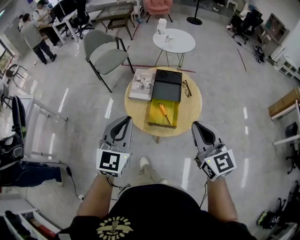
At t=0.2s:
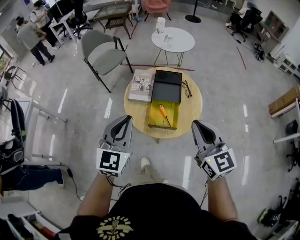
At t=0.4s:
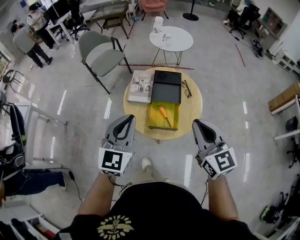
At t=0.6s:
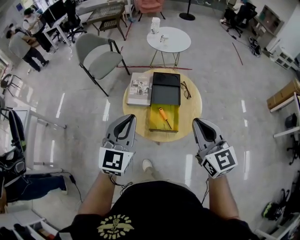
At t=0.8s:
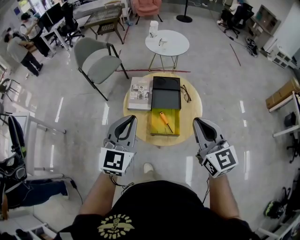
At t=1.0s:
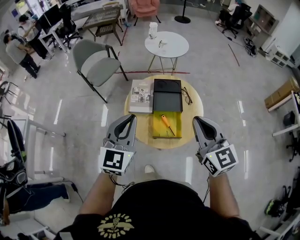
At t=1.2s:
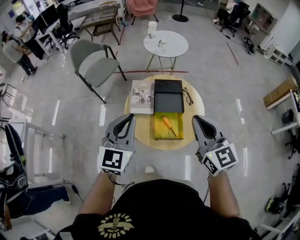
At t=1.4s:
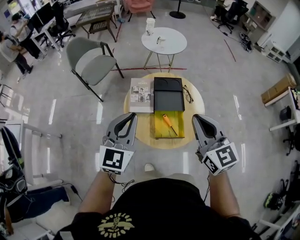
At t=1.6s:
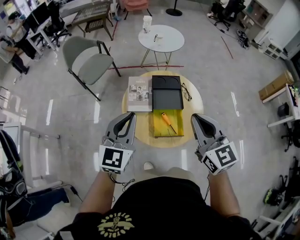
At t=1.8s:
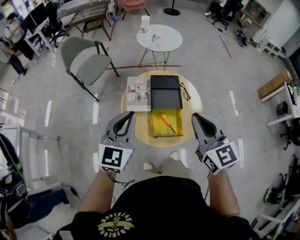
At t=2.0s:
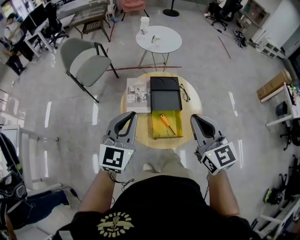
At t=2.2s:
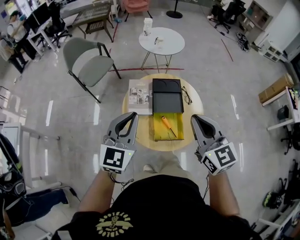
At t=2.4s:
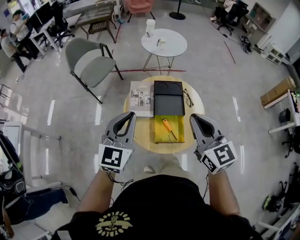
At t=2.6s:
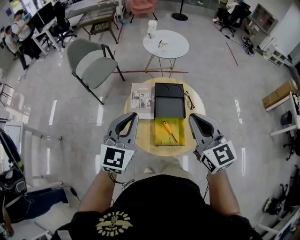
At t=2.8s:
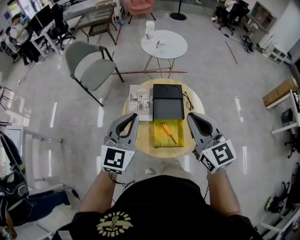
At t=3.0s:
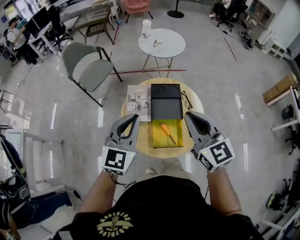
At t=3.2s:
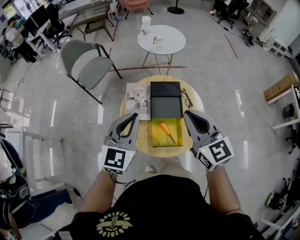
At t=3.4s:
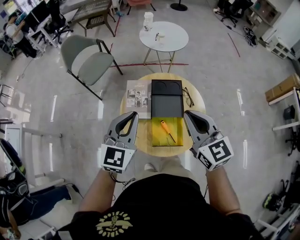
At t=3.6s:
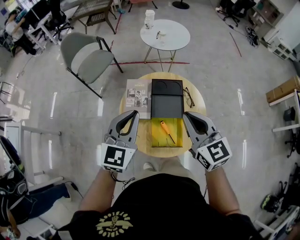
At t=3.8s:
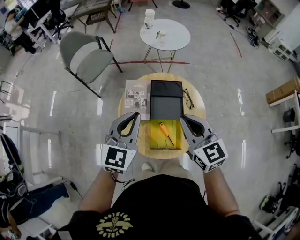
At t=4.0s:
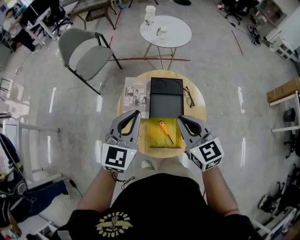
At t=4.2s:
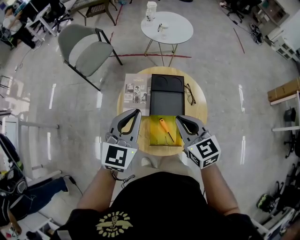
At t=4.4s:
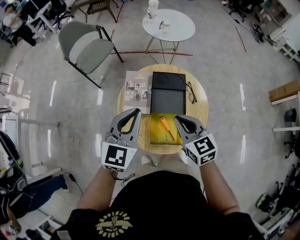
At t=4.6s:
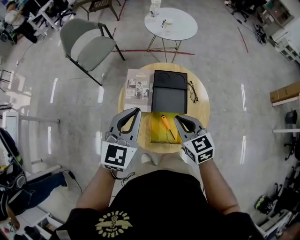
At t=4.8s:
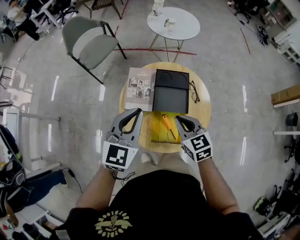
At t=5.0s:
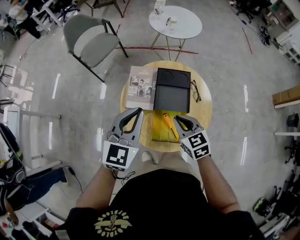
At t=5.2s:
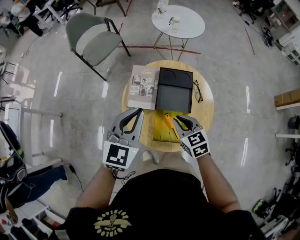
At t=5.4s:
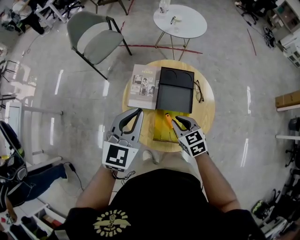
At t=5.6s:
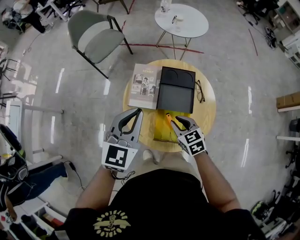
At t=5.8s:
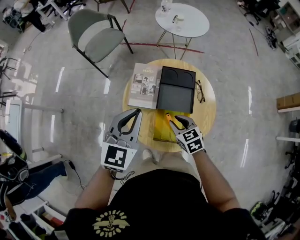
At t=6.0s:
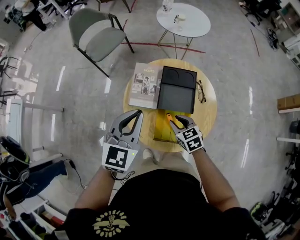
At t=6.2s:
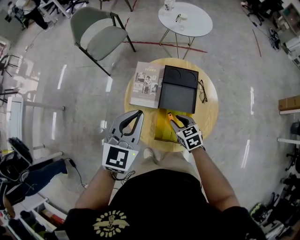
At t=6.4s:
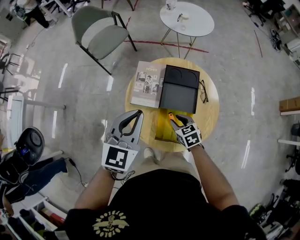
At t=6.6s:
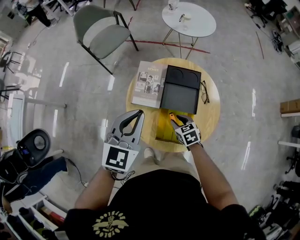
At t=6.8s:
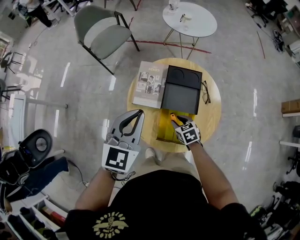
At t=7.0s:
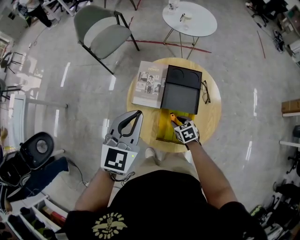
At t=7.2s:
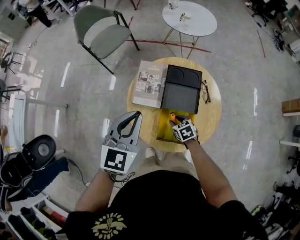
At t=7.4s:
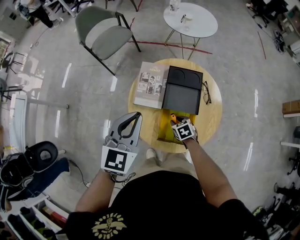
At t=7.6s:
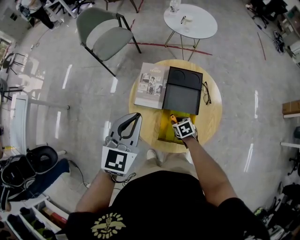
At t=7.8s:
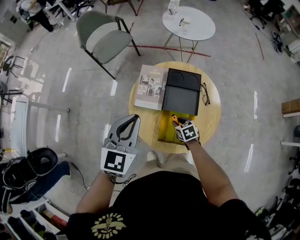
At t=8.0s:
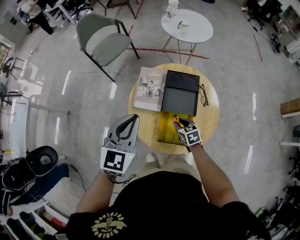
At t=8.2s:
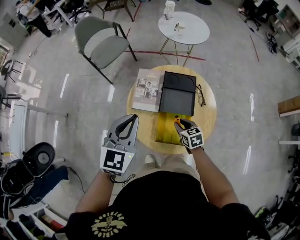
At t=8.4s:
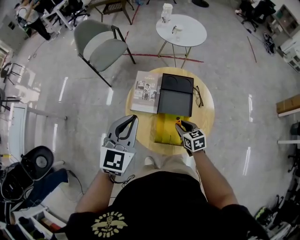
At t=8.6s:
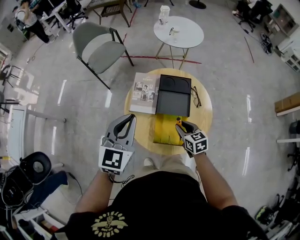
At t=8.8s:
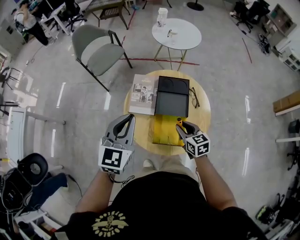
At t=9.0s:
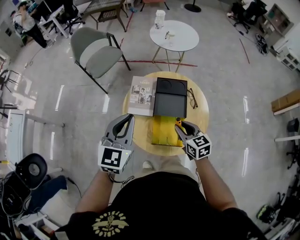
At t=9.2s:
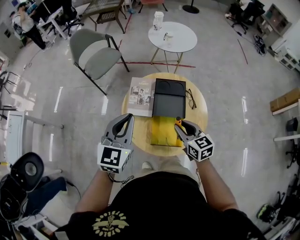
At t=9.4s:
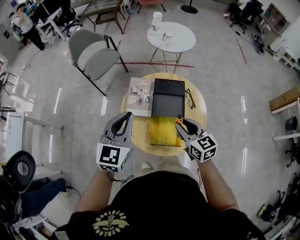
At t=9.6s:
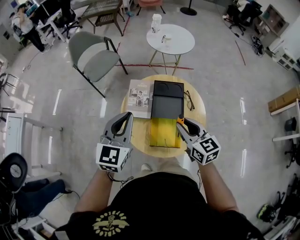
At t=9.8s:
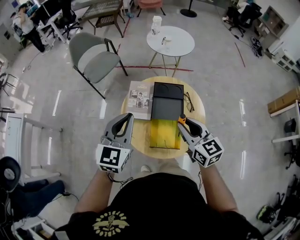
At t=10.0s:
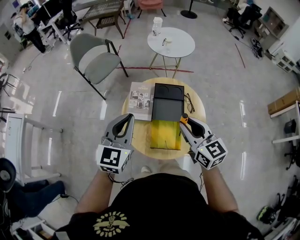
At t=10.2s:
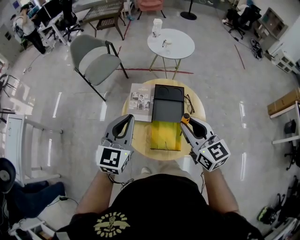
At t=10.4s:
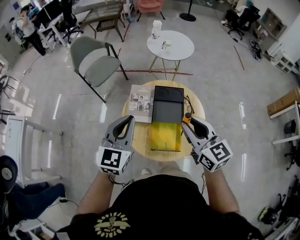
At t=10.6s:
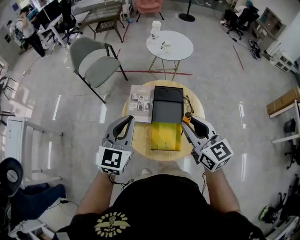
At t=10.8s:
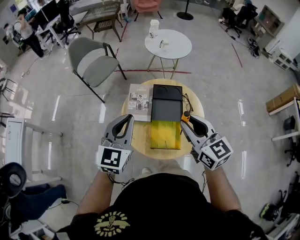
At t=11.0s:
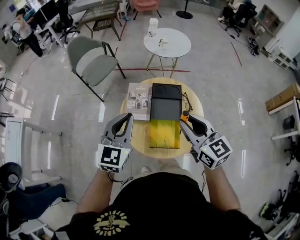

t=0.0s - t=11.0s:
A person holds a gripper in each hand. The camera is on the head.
t=0.0s - t=1.6s: The left gripper travels forward by some 15 cm, while the right gripper heads forward and to the left, covering about 15 cm.
t=1.6s - t=3.2s: Both grippers travel together forward, some 10 cm.
t=3.2s - t=4.8s: The right gripper is displaced downward by approximately 20 cm, and swivels approximately 20 degrees. Meanwhile the left gripper heads downward, covering roughly 5 cm.
t=4.8s - t=6.2s: The right gripper travels downward by about 15 cm, and opens.
t=6.2s - t=7.8s: The right gripper shifts roughly 10 cm downward.
t=7.8s - t=9.4s: The right gripper moves upward, some 25 cm, and tips its fingers upward by about 30 degrees.
t=9.4s - t=11.0s: The right gripper is displaced upward by some 10 cm.

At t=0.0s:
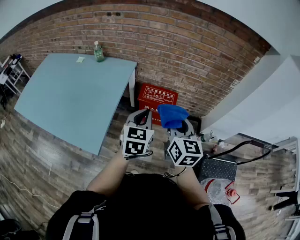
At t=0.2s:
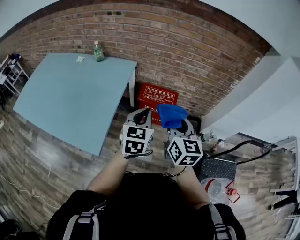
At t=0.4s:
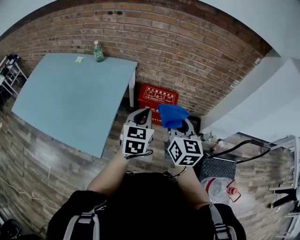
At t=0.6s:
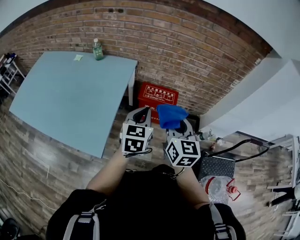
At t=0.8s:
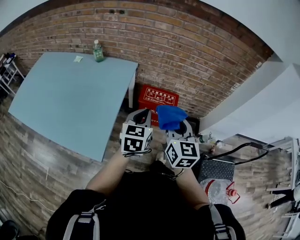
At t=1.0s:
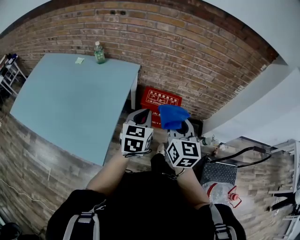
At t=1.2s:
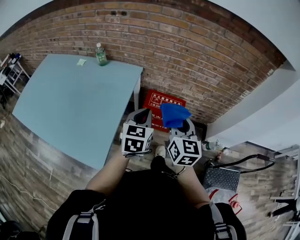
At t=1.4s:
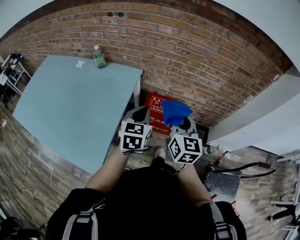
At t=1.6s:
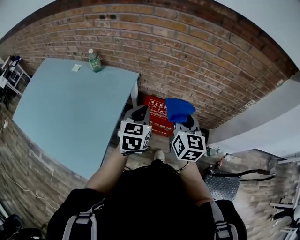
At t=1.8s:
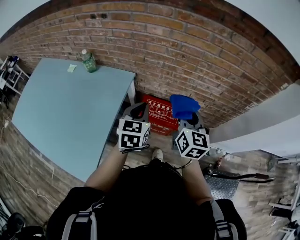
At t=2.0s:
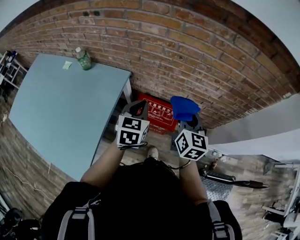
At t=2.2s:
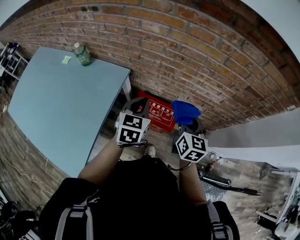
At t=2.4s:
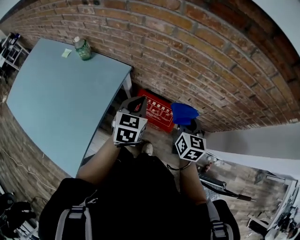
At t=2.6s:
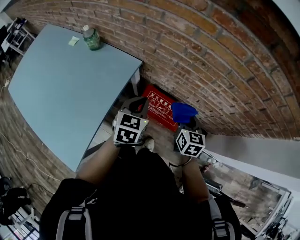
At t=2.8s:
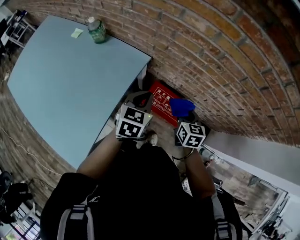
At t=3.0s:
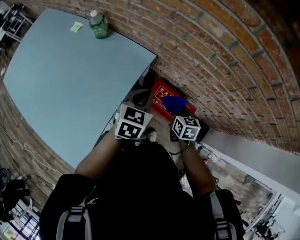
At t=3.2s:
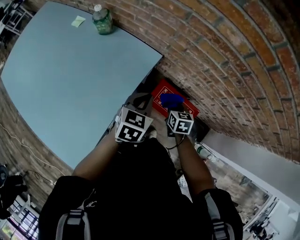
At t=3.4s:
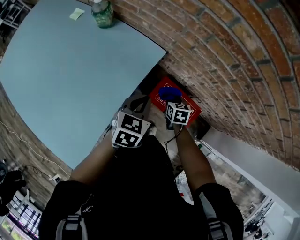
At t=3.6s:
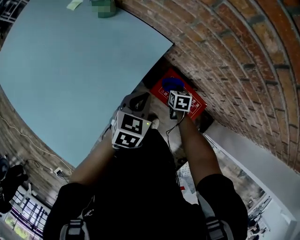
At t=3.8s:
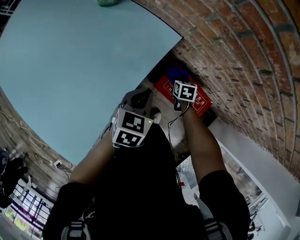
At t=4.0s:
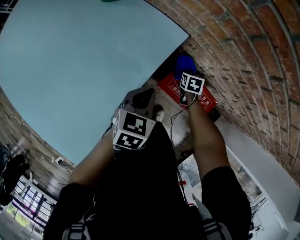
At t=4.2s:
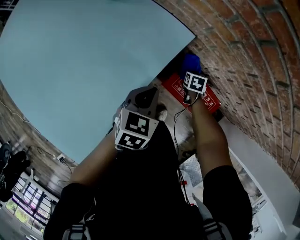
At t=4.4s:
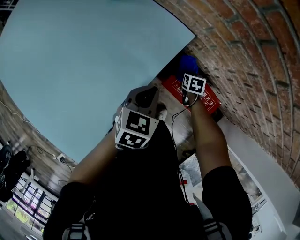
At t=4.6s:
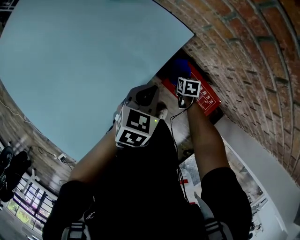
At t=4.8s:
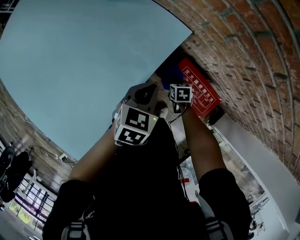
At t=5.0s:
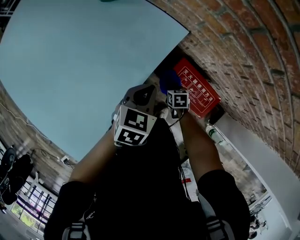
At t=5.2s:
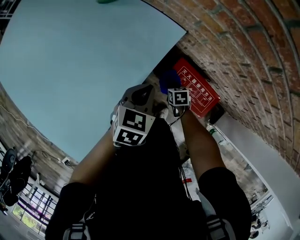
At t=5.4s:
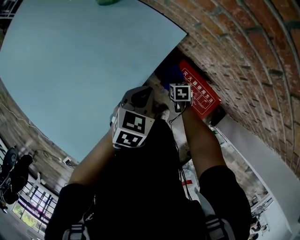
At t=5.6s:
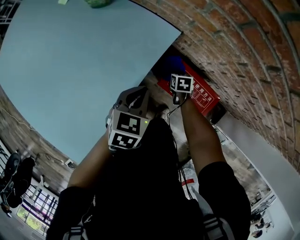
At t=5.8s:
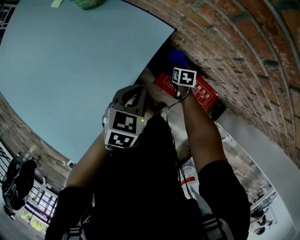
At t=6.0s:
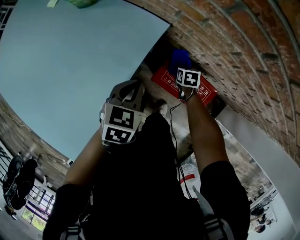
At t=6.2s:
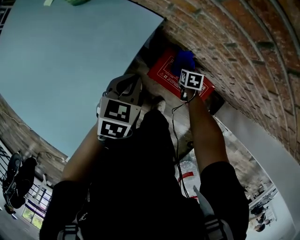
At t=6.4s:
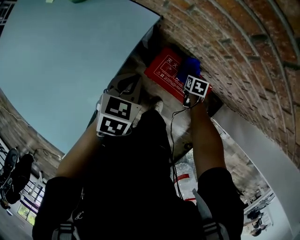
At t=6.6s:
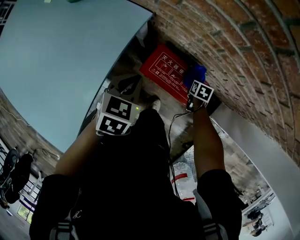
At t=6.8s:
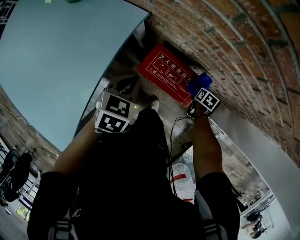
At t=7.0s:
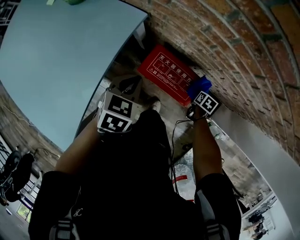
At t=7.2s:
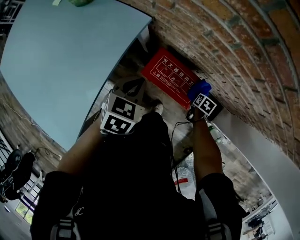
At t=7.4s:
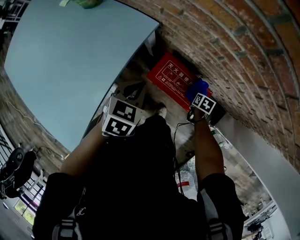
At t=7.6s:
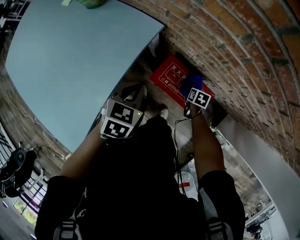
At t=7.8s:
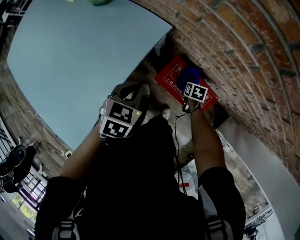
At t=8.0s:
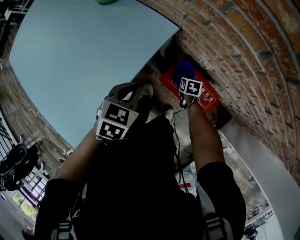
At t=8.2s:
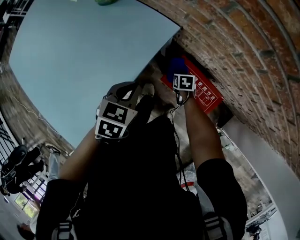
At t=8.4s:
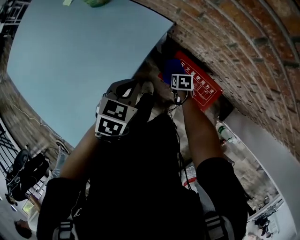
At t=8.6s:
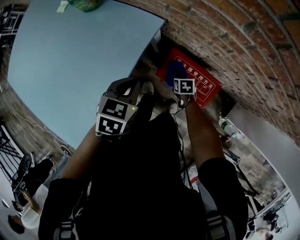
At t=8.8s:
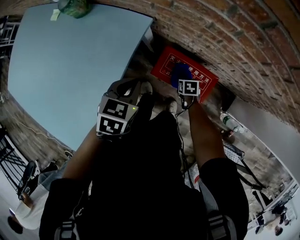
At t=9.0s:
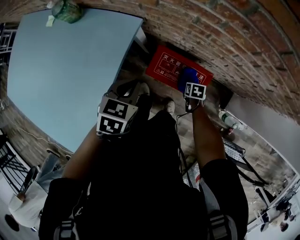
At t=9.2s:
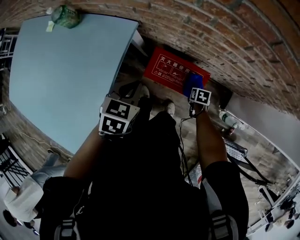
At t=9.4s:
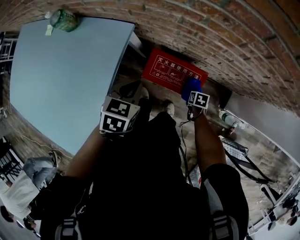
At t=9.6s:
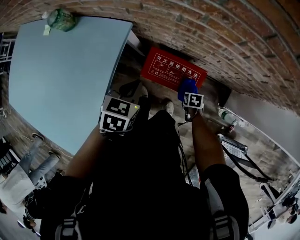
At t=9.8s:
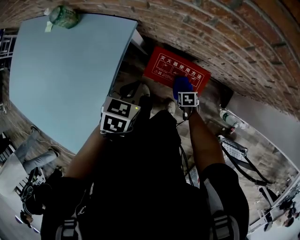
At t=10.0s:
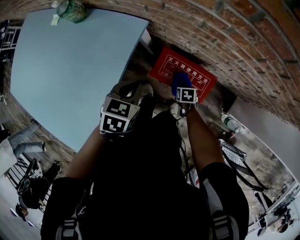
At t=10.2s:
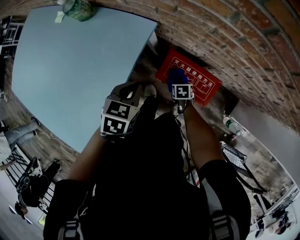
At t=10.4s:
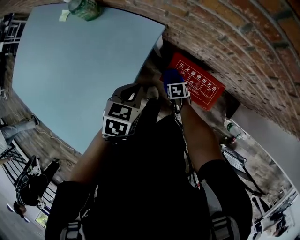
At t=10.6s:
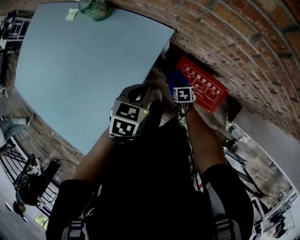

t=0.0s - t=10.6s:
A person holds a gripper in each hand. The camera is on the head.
t=0.0s - t=1.6s: Both grippers travel together forward, some 25 cm.
t=1.6s - t=3.0s: The left gripper goes some 20 cm forward and downward. The right gripper shifts about 35 cm downward and forward, and points its fingers roughly 30 degrees further downward.
t=3.0s - t=4.6s: The left gripper is displaced downward and to the left by some 15 cm; the right gripper shifts some 25 cm downward, and turns by about 30 degrees.
t=4.6s - t=6.0s: The right gripper moves to the right, some 5 cm, and travels backward and back again, about 10 cm each way.
t=6.0s - t=7.6s: The right gripper is displaced to the right and backward by roughly 15 cm. The left gripper moves to the right, approximately 5 cm.
t=7.6s - t=9.0s: The left gripper reaches some 5 cm to the left, then returns, while the right gripper goes some 5 cm backward, and travels to the left and back again, about 15 cm each way.
t=9.0s - t=10.6s: The right gripper moves approximately 20 cm, while the left gripper shifts by about 10 cm.

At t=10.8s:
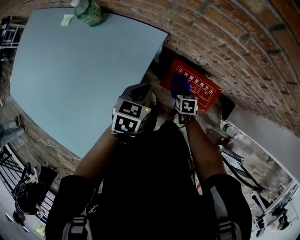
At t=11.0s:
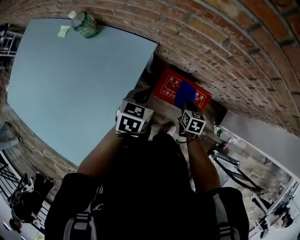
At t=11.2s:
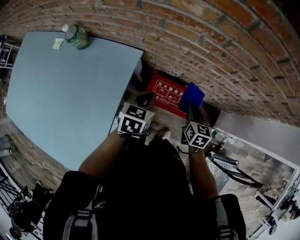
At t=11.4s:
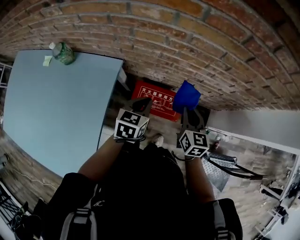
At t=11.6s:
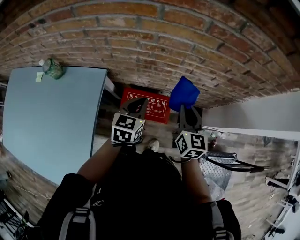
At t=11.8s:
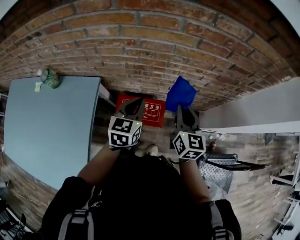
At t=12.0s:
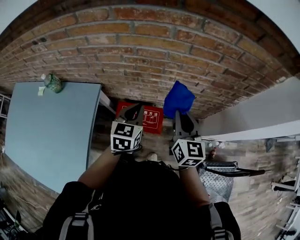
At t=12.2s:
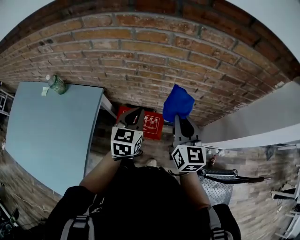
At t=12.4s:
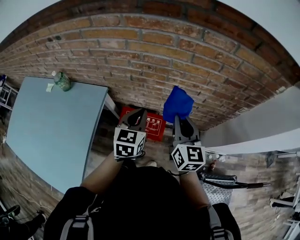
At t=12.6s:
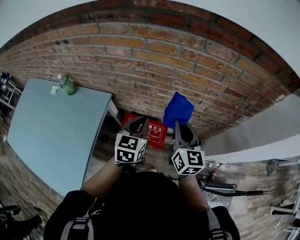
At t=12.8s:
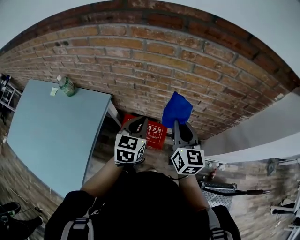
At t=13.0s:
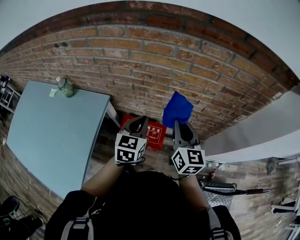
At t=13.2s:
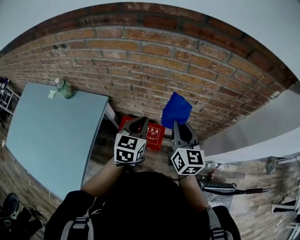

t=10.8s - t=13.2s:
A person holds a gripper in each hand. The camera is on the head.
t=10.8s - t=12.0s: The right gripper heads upward and to the right, covering about 50 cm, and tips its fingers upward by roughly 50 degrees, while the left gripper heads to the right and upward, covering some 30 cm, and rotates approximately 30 degrees.
t=12.0s - t=13.2s: The left gripper ends up about 5 cm from where it was.
